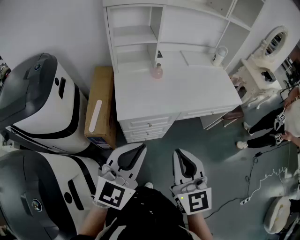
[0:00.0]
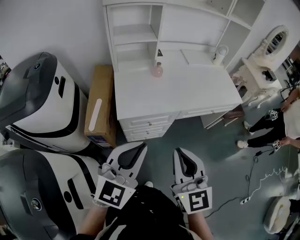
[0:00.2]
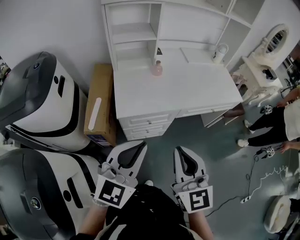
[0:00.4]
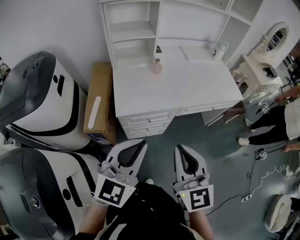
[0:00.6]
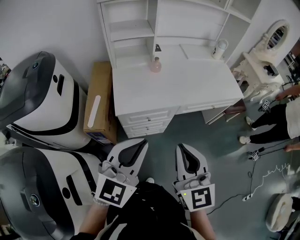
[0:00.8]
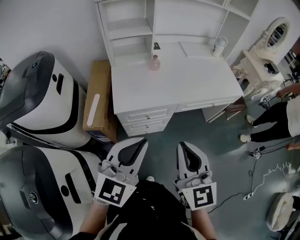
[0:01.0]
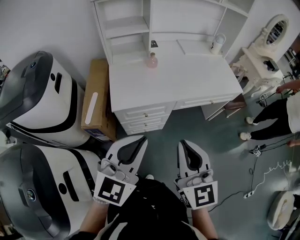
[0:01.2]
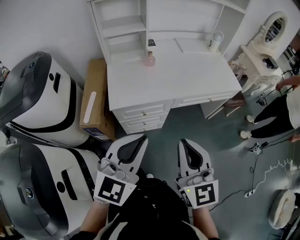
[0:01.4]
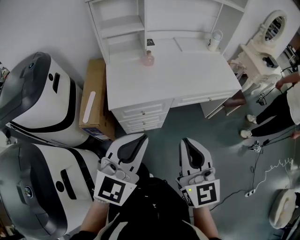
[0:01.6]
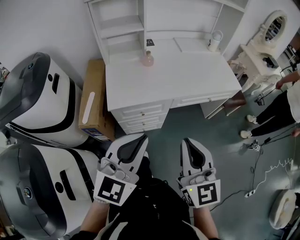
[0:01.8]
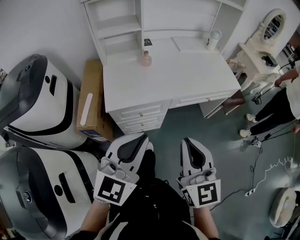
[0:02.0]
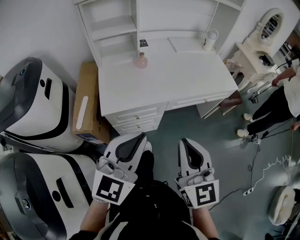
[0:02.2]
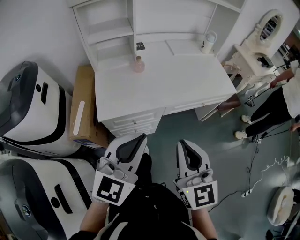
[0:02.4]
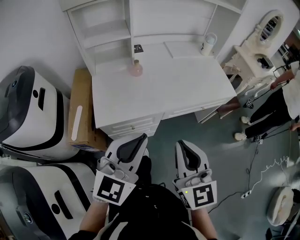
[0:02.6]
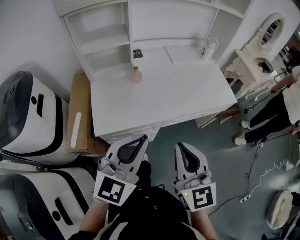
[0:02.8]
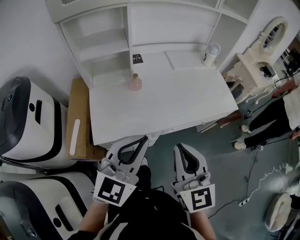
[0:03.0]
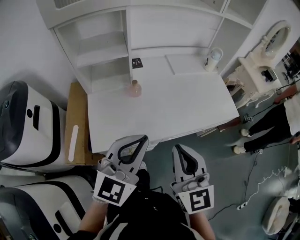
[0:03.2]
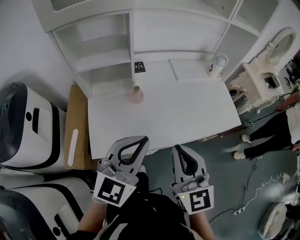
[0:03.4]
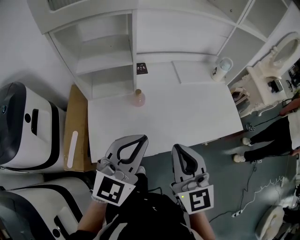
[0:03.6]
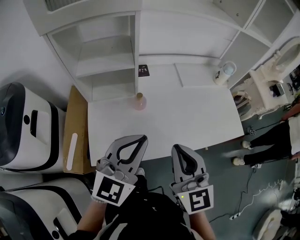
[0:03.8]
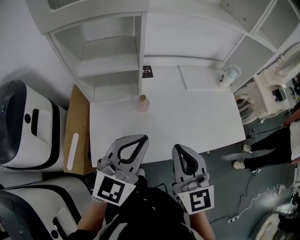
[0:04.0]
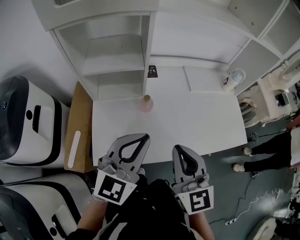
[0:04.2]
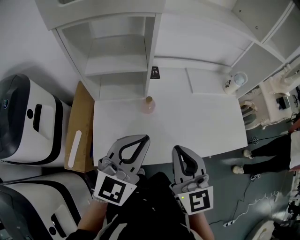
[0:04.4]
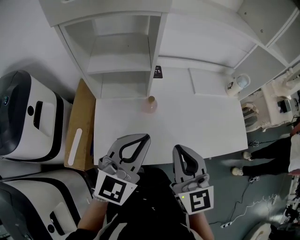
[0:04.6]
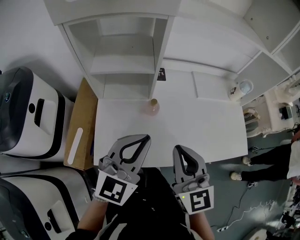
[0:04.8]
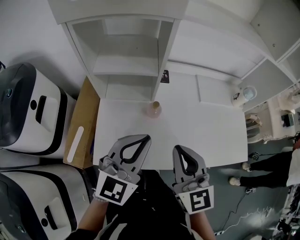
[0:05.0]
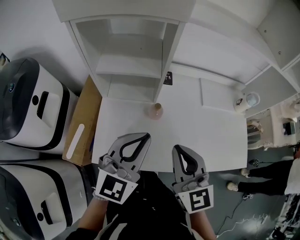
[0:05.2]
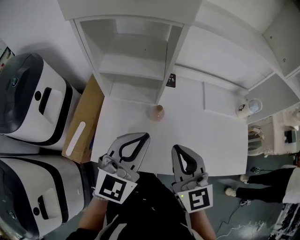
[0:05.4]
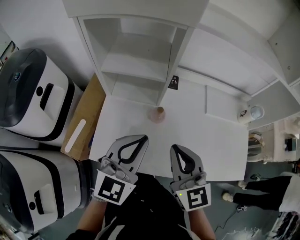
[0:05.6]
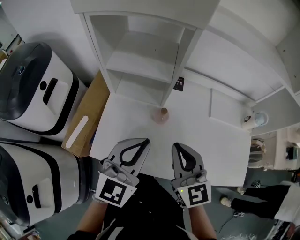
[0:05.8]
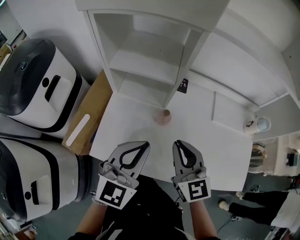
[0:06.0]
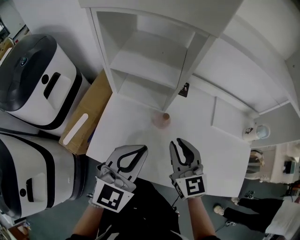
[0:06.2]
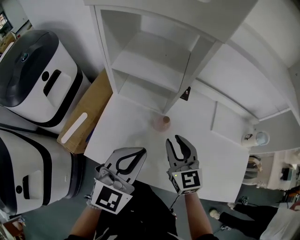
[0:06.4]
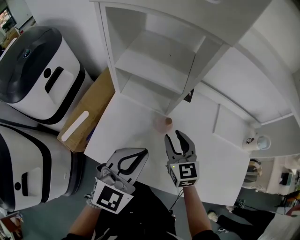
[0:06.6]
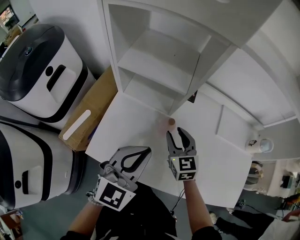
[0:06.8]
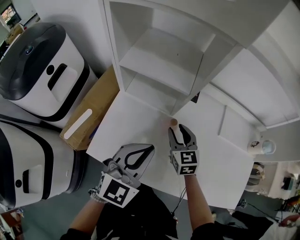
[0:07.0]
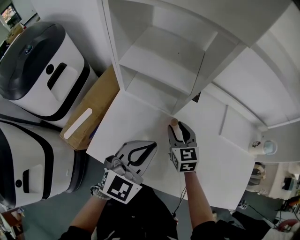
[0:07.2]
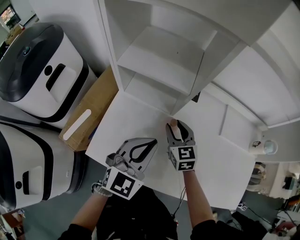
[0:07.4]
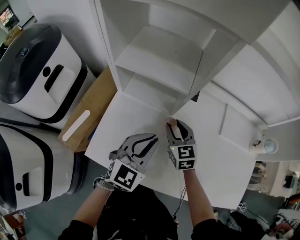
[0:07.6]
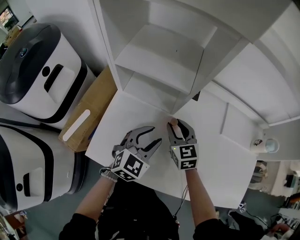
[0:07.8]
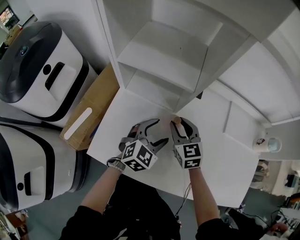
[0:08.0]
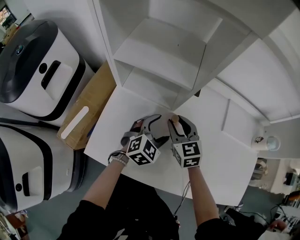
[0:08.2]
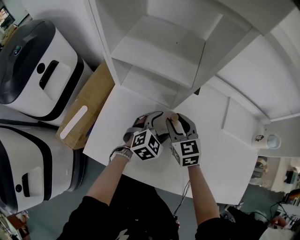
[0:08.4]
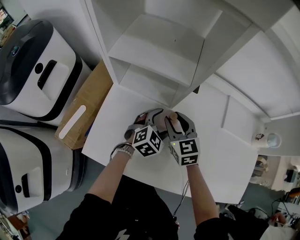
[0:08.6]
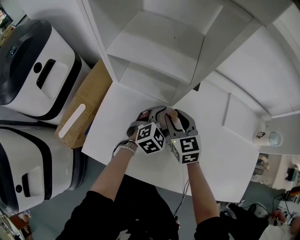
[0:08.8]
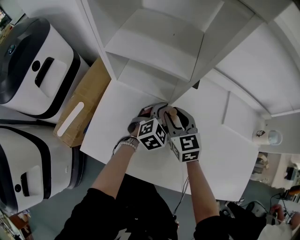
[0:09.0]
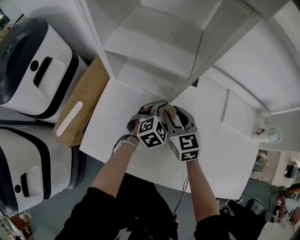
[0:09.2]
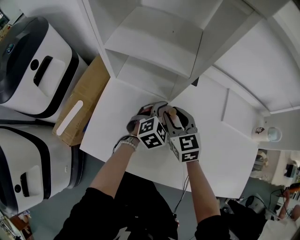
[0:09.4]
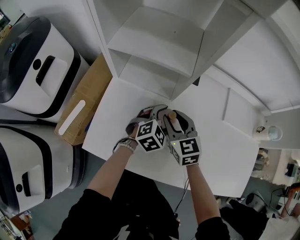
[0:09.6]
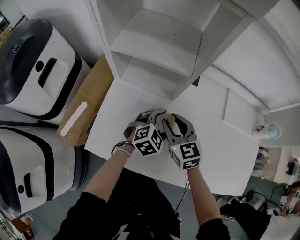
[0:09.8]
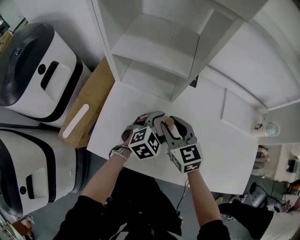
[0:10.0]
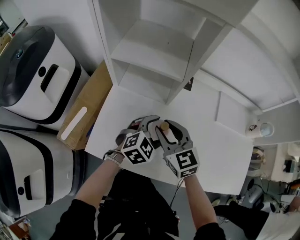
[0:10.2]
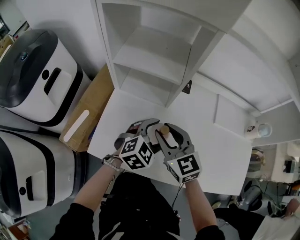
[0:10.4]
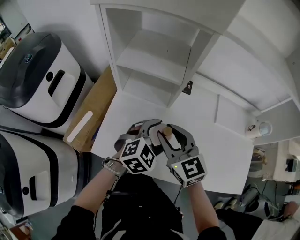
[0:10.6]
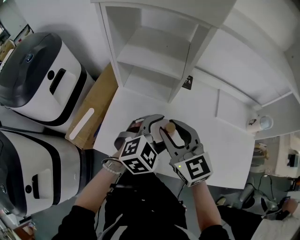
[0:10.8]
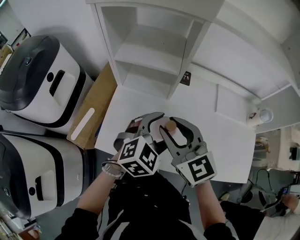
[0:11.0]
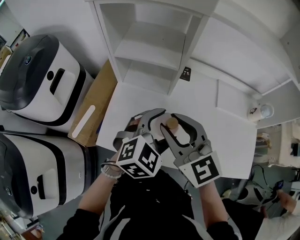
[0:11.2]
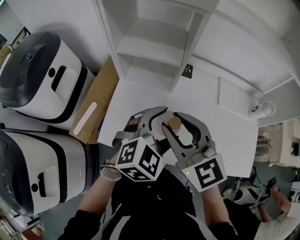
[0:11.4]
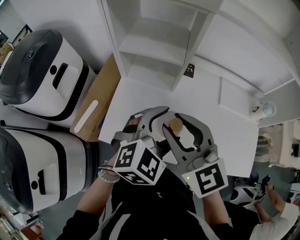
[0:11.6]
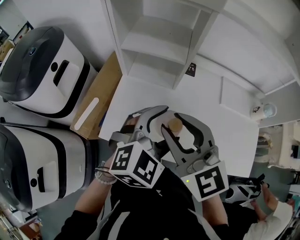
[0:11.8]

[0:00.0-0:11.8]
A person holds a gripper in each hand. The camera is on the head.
0:00.0 to 0:01.4: The two grippers go some 5 cm to the right.
0:01.4 to 0:03.0: Both grippers travel together forward, about 20 cm.
0:03.0 to 0:04.4: Both grippers move forward, roughly 20 cm.
0:04.4 to 0:06.0: The right gripper travels forward and downward by some 15 cm, and changes its angle by roughly 20 degrees. The left gripper ends up approximately 5 cm from where it was, and turns by roughly 20 degrees.
0:06.0 to 0:07.4: The left gripper shifts approximately 10 cm downward and forward. Meanwhile the right gripper goes roughly 20 cm downward and forward, and opens its fingers.
0:07.4 to 0:08.8: The left gripper moves downward and forward, roughly 20 cm, rotates about 30 degrees, and opens its fingers.
0:08.8 to 0:10.4: Both grippers travel together upward and backward, roughly 15 cm.
0:10.4 to 0:11.8: The two grippers go about 20 cm upward and backward.

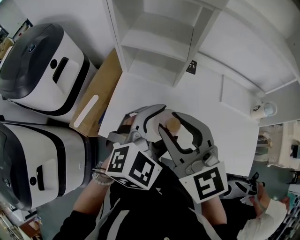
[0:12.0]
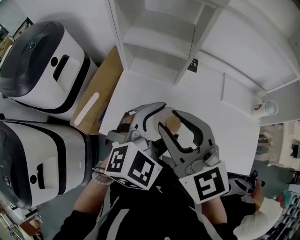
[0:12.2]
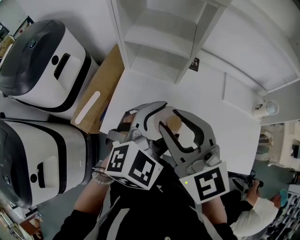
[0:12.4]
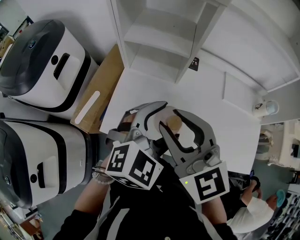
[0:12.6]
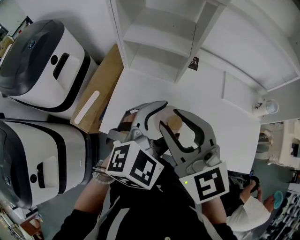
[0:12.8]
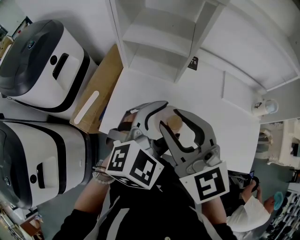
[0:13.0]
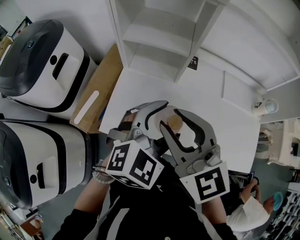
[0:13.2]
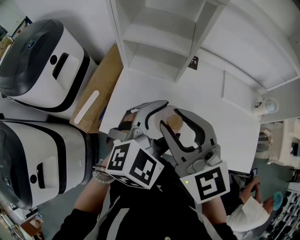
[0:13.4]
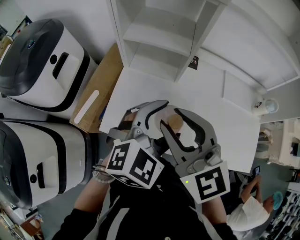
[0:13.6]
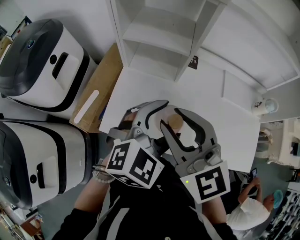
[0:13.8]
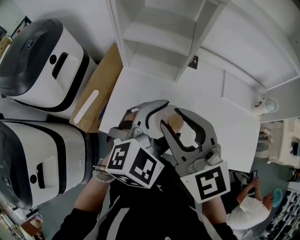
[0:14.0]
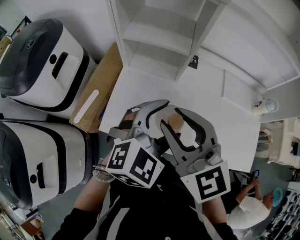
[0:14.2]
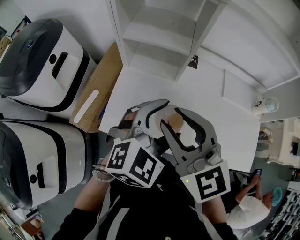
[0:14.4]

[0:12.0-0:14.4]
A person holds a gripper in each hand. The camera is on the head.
0:12.0 to 0:14.4: Neither gripper changes place.

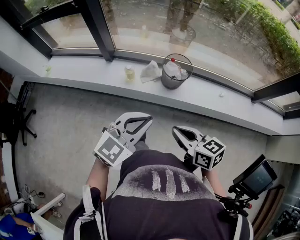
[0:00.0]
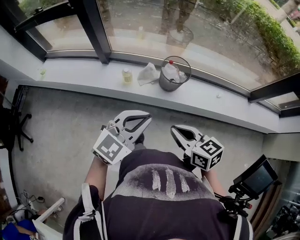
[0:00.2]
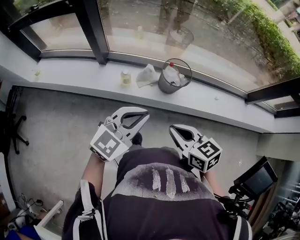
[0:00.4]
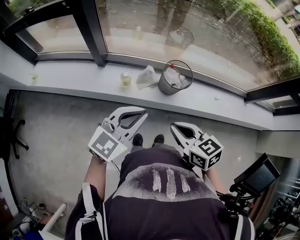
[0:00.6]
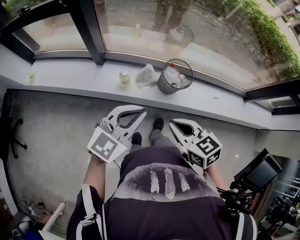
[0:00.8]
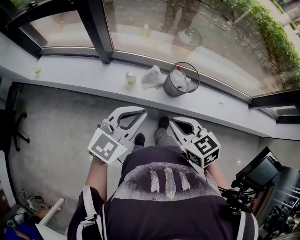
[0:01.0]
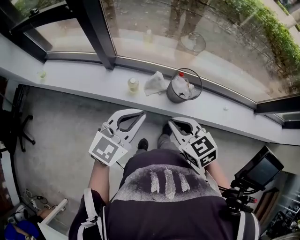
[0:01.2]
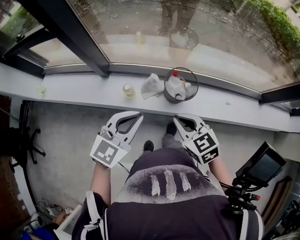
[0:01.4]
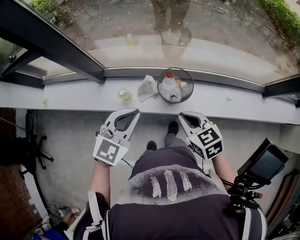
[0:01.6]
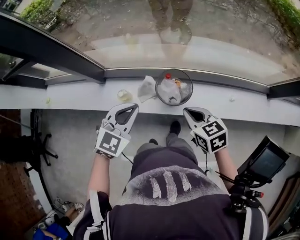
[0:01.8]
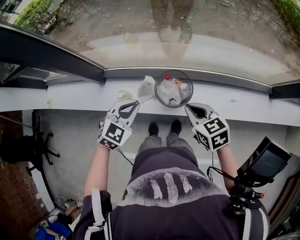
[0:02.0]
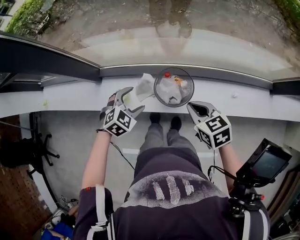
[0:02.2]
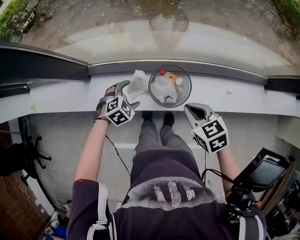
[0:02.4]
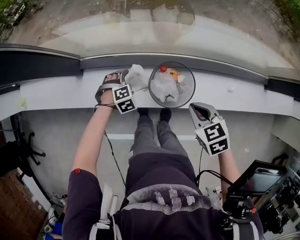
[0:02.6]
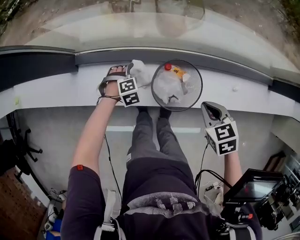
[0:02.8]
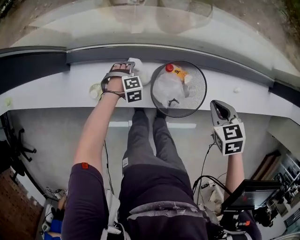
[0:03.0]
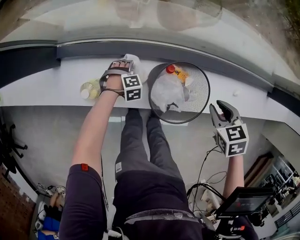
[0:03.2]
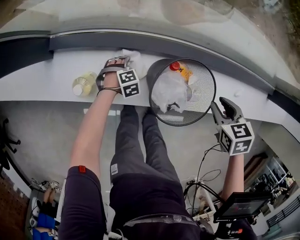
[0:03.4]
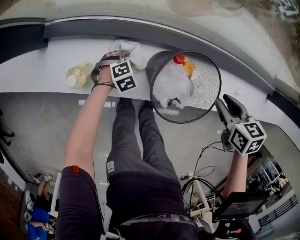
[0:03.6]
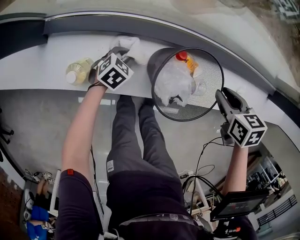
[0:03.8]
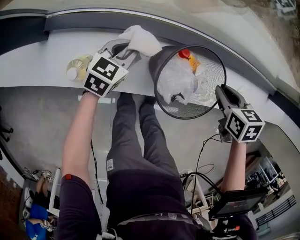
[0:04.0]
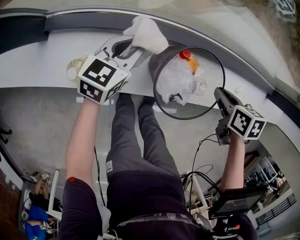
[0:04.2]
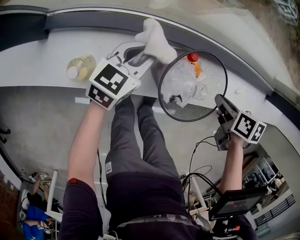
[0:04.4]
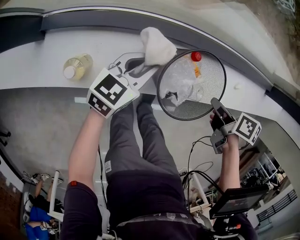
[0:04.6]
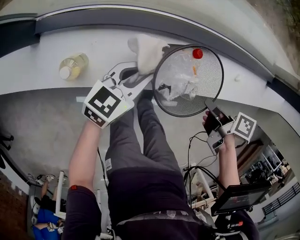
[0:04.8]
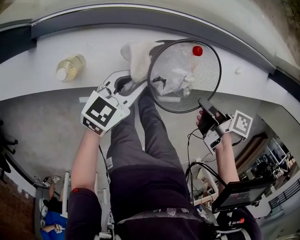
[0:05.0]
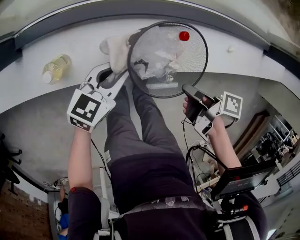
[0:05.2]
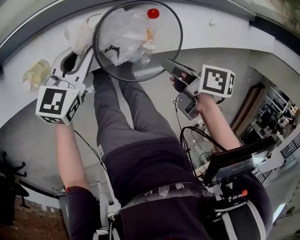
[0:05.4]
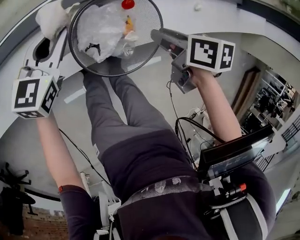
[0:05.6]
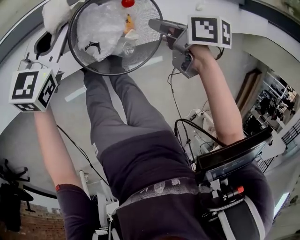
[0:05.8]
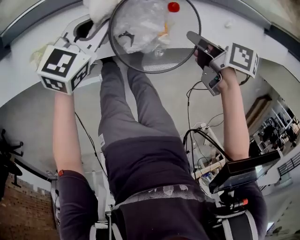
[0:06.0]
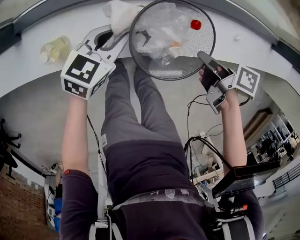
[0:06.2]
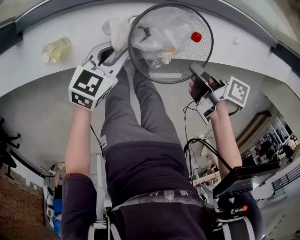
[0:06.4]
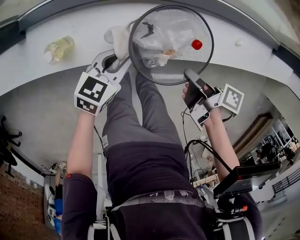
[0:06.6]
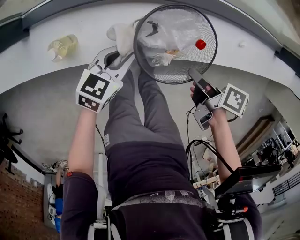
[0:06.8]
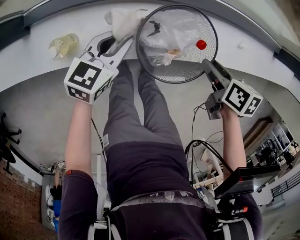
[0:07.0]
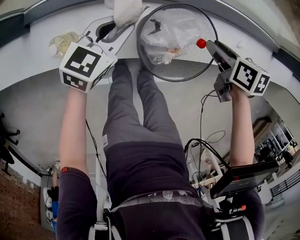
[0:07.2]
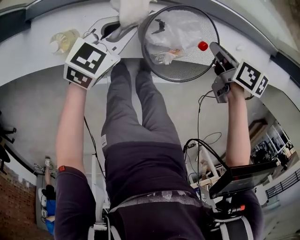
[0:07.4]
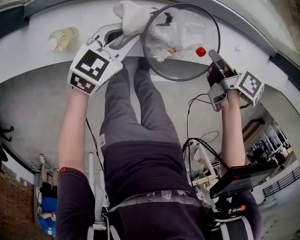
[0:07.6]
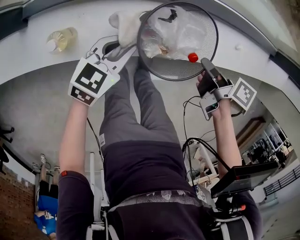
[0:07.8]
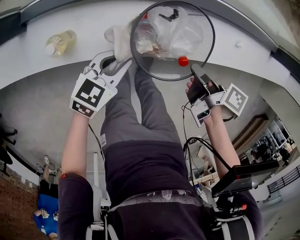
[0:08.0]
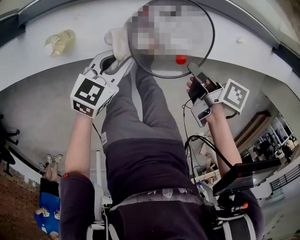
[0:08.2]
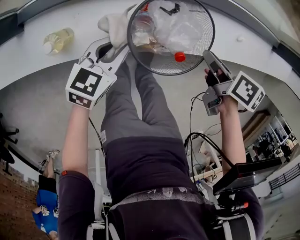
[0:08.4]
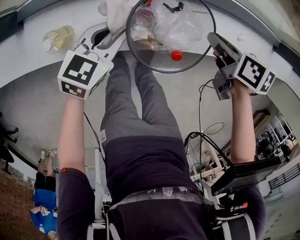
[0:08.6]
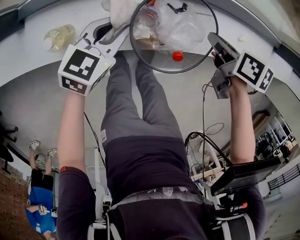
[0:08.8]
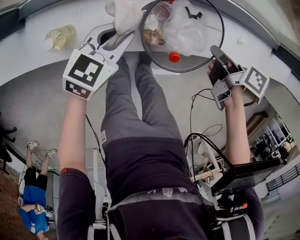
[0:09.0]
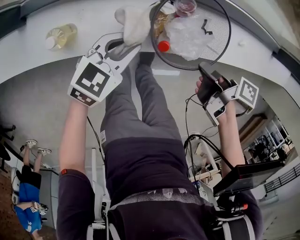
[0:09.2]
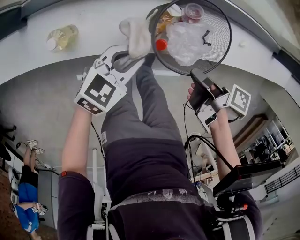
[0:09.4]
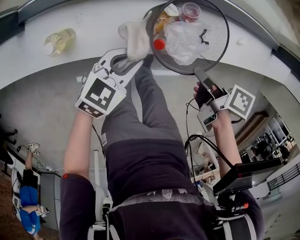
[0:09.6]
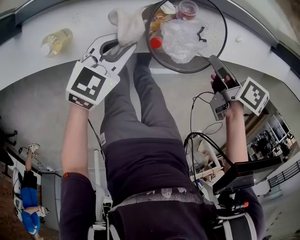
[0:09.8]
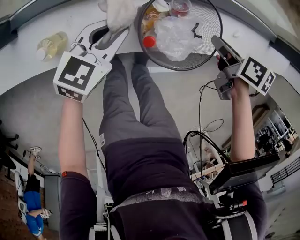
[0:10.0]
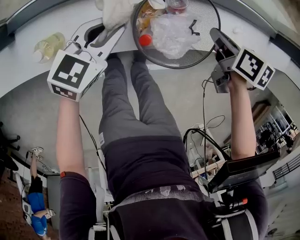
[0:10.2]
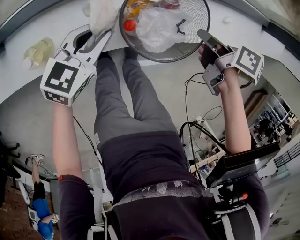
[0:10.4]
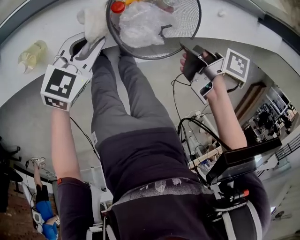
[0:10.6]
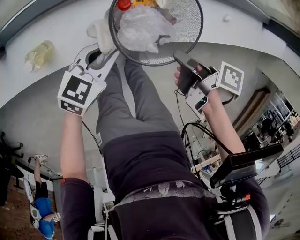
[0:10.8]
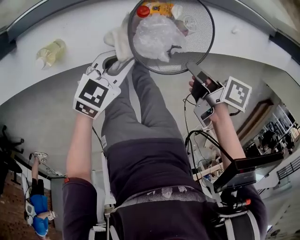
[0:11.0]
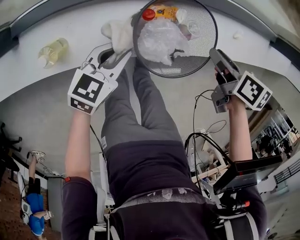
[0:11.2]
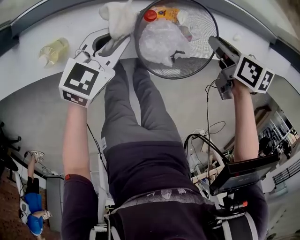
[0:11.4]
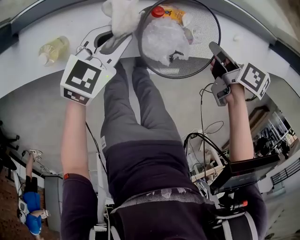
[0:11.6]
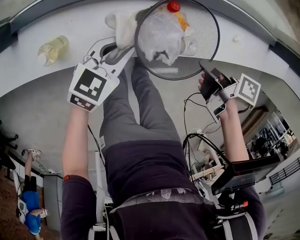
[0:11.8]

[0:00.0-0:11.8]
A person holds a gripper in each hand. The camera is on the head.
0:00.0 to 0:01.4: The left gripper shifts by some 20 cm.
0:01.4 to 0:03.0: The left gripper travels downward by about 50 cm, points its fingers roughly 60 degrees further downward, and opens.
0:03.0 to 0:04.4: The left gripper goes roughly 15 cm upward, angles its fingers upward, by about 60 degrees, and closes up.
